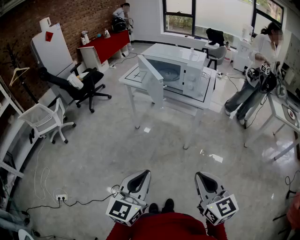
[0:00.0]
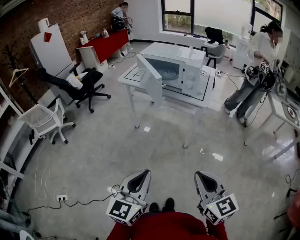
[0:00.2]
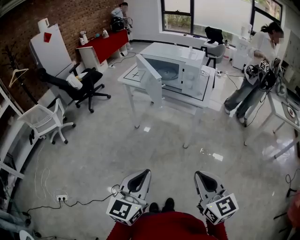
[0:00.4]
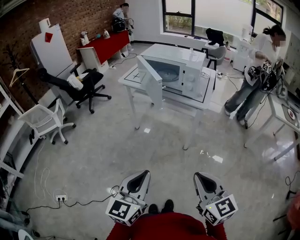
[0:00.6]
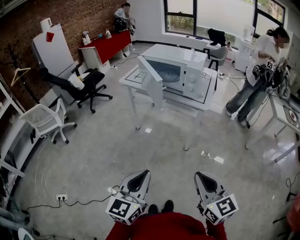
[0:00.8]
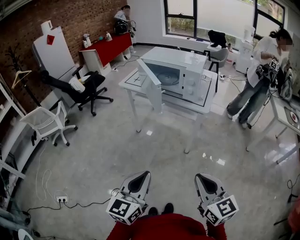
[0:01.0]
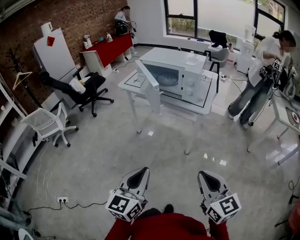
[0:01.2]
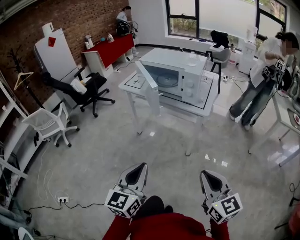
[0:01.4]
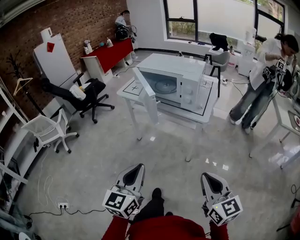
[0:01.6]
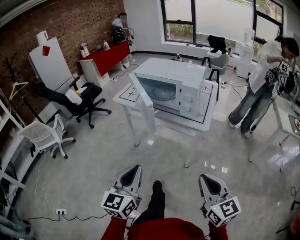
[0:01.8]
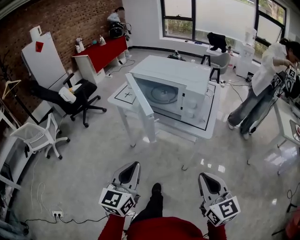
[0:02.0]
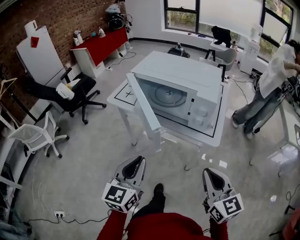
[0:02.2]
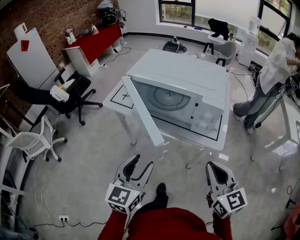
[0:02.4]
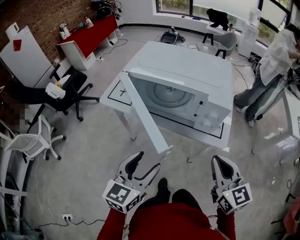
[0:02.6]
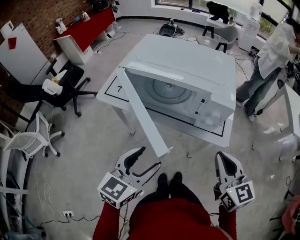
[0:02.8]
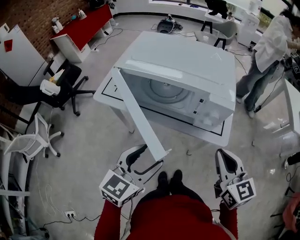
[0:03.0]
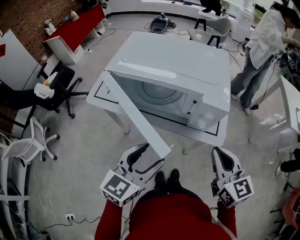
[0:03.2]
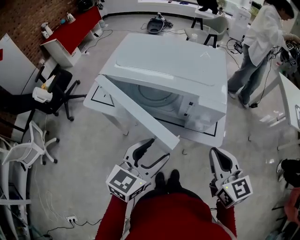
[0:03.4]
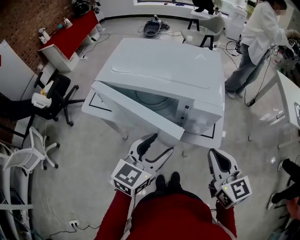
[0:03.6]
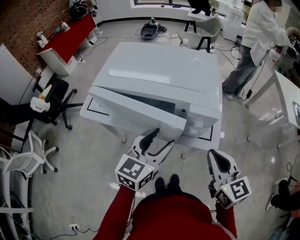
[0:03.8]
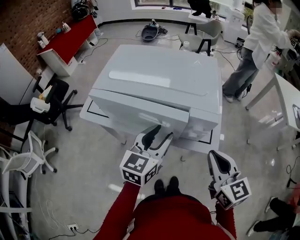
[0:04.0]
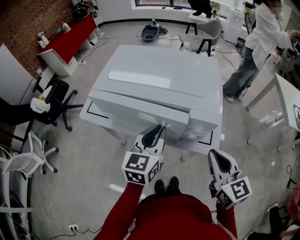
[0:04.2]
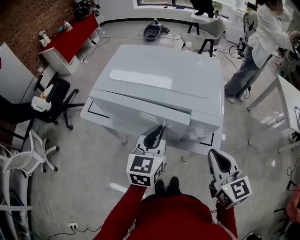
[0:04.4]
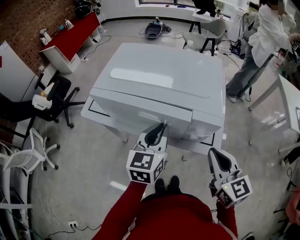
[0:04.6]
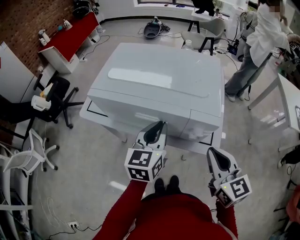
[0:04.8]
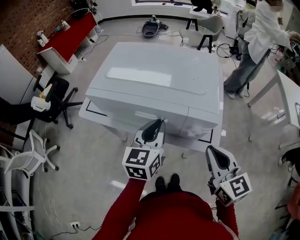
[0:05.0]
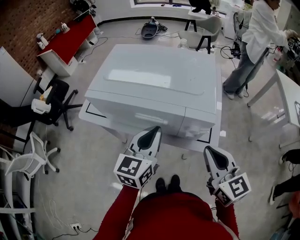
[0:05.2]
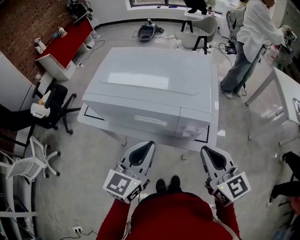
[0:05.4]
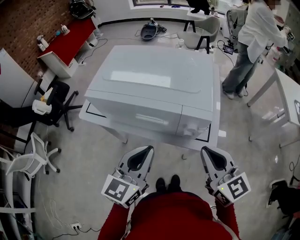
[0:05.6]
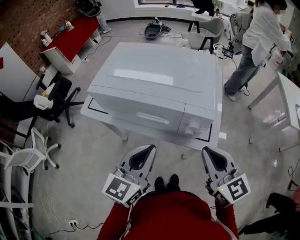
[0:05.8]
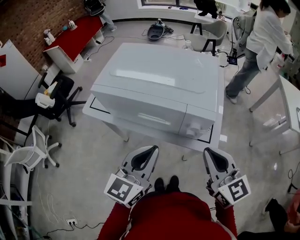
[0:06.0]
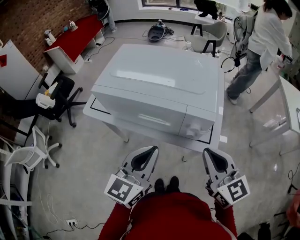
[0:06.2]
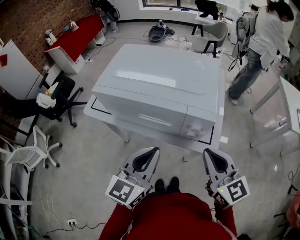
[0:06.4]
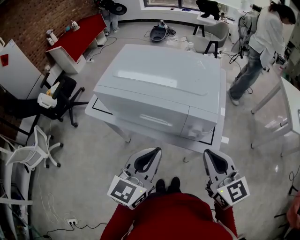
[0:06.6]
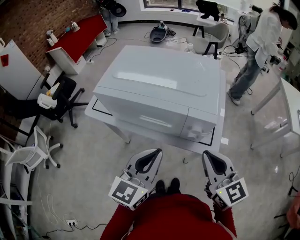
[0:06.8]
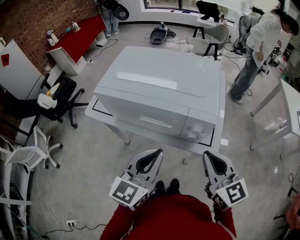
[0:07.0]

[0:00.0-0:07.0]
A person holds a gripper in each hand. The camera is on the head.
0:00.0 to 0:01.4: The left gripper goes about 5 cm forward; the right gripper travels to the right and forward by some 10 cm.
0:01.4 to 0:02.8: The two grippers go some 30 cm forward. The left gripper turns by about 30 degrees, and opens its fingers.
0:02.8 to 0:04.2: The right gripper shifts about 5 cm forward, while the left gripper heads forward, covering about 15 cm, and closes its fingers.
0:04.2 to 0:05.6: The left gripper is displaced backward by about 10 cm.
0:05.6 to 0:07.0: The grippers move only a little.

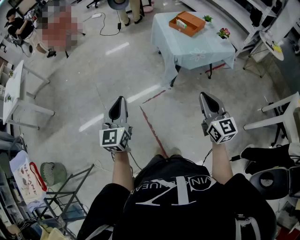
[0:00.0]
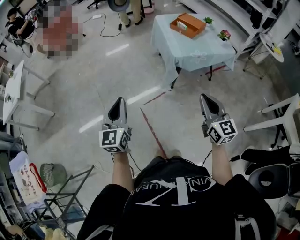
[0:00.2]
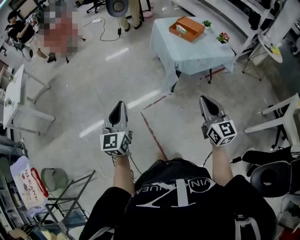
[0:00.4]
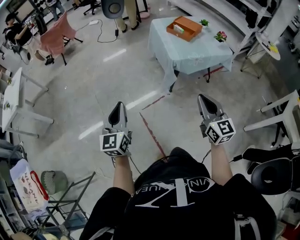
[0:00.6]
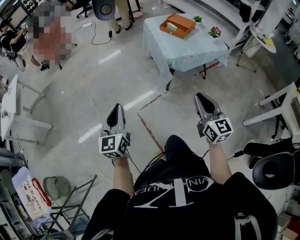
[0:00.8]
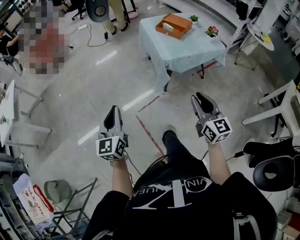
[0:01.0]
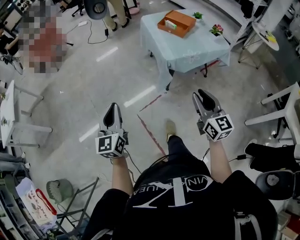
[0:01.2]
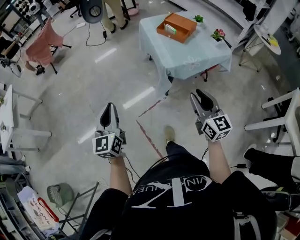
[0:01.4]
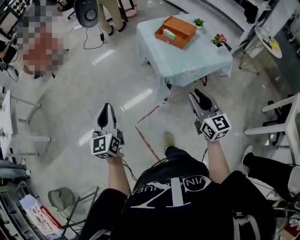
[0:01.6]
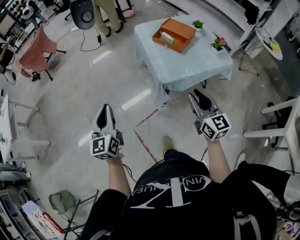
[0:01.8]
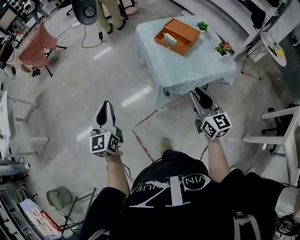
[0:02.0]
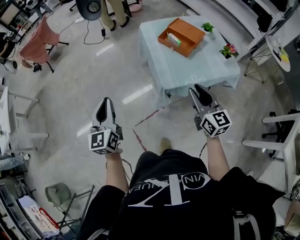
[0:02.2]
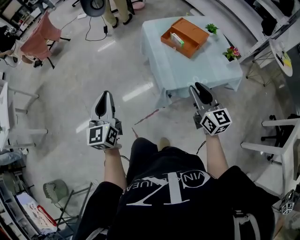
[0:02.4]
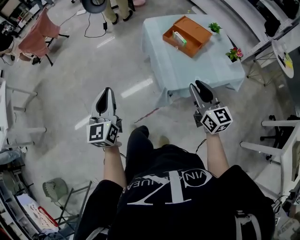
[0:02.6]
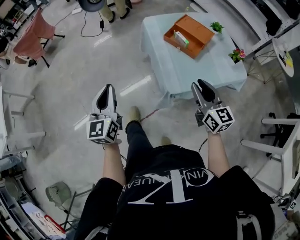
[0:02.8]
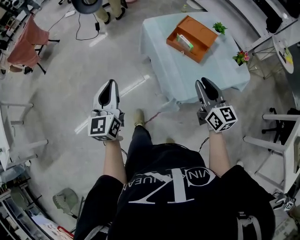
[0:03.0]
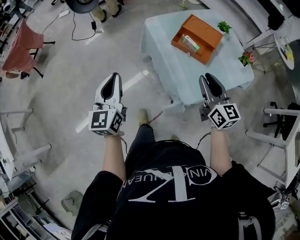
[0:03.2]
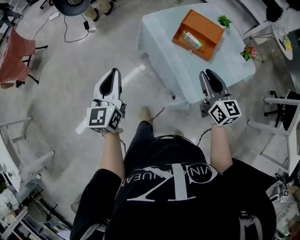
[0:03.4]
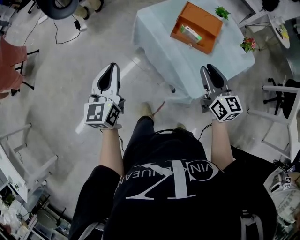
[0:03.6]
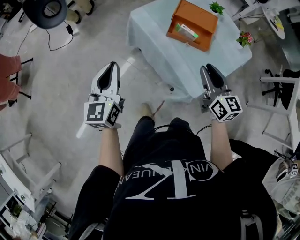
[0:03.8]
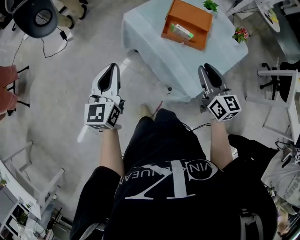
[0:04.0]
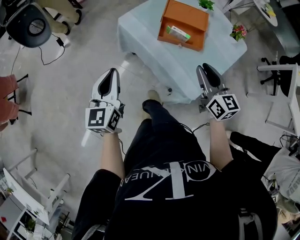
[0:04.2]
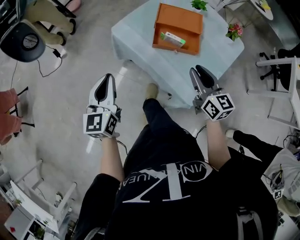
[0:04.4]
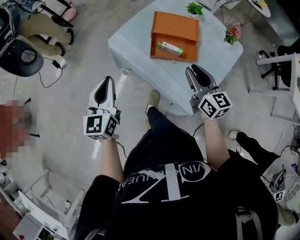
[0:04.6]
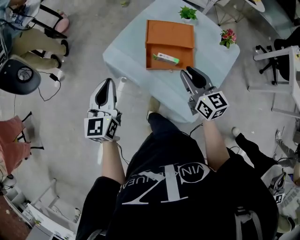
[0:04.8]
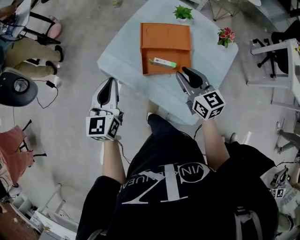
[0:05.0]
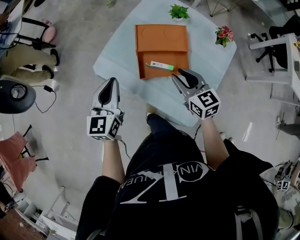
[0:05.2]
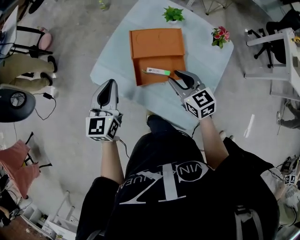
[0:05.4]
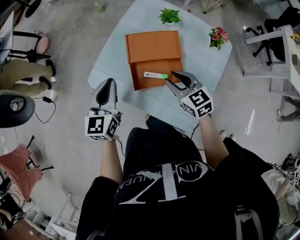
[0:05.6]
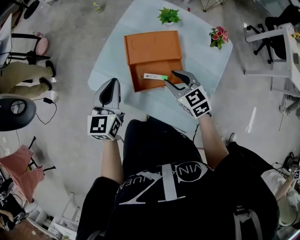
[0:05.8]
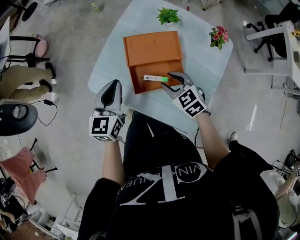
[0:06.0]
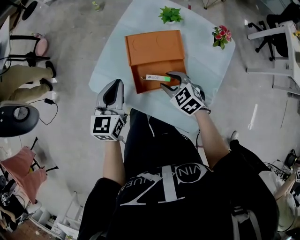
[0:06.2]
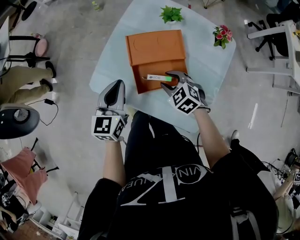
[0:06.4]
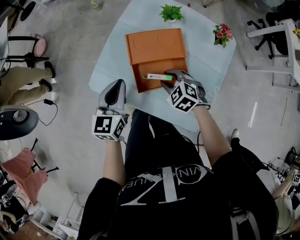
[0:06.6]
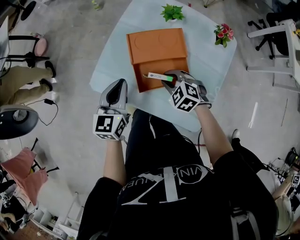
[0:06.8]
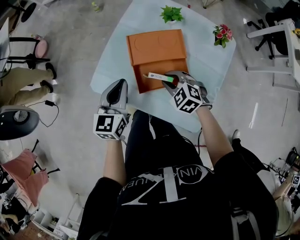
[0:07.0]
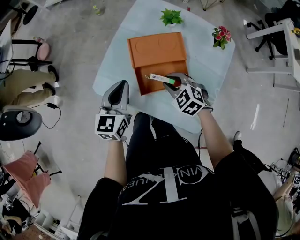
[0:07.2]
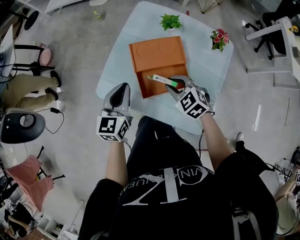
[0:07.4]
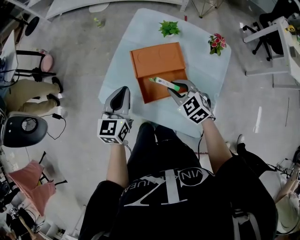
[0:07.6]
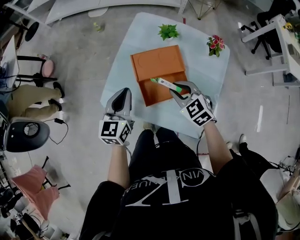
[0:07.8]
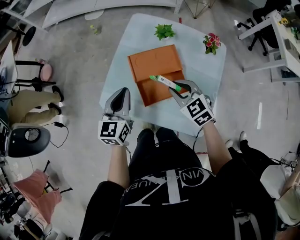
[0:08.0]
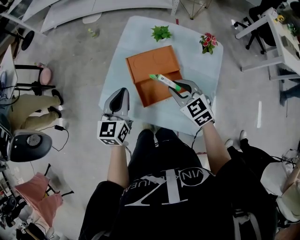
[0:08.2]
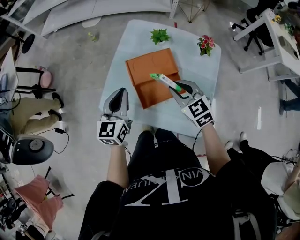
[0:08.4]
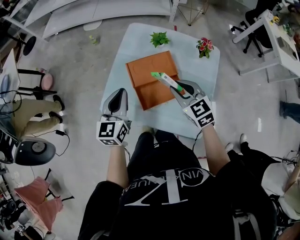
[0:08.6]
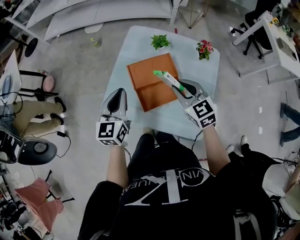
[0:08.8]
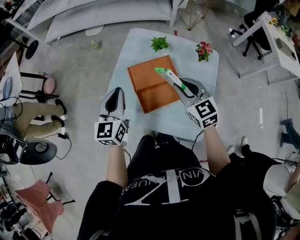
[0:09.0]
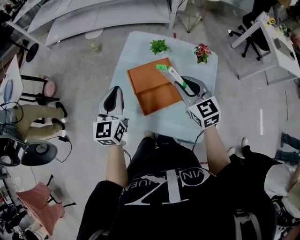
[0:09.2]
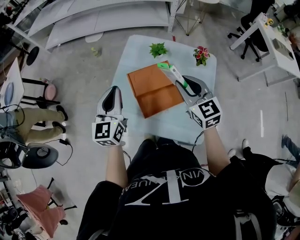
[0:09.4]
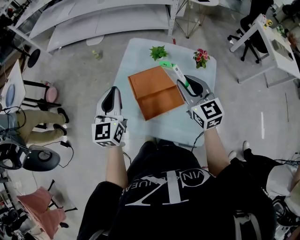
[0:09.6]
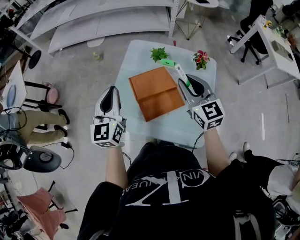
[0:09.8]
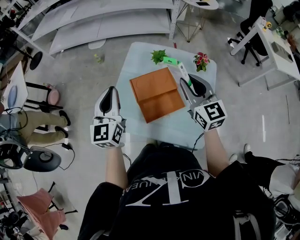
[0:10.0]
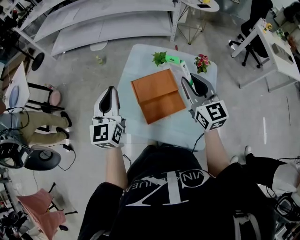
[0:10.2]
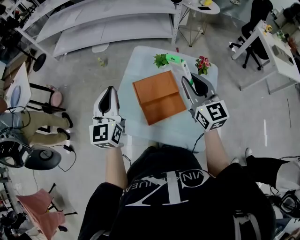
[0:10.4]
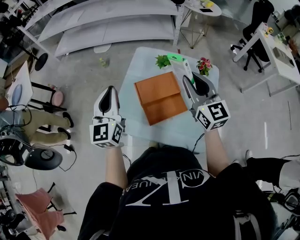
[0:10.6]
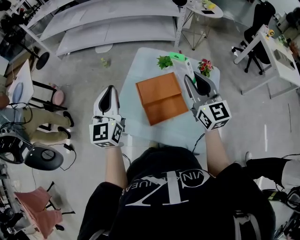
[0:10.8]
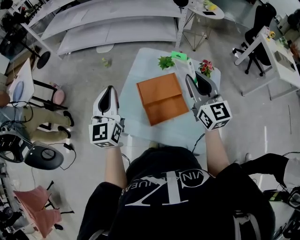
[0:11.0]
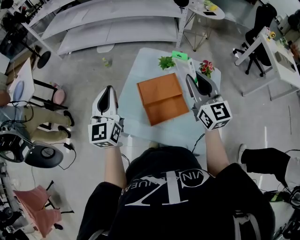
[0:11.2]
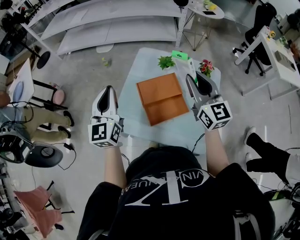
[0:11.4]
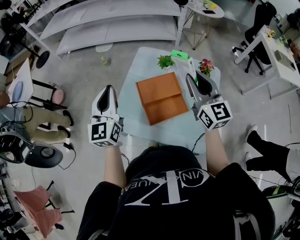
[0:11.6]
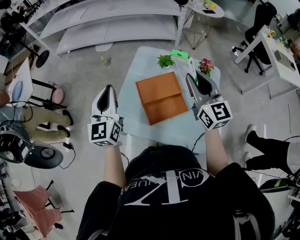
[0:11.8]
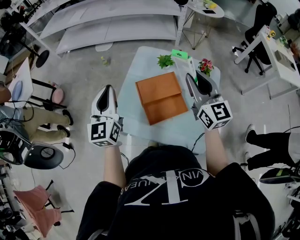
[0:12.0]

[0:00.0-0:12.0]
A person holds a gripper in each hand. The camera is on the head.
0:00.0 to 0:01.6: The grippers both shift forward by approximately 25 cm. The right gripper opens.
0:01.6 to 0:03.0: The two grippers go approximately 30 cm forward.
0:03.0 to 0:04.4: The right gripper shifts by some 15 cm, and rotates some 30 degrees. Meanwhile the left gripper changes place by about 25 cm, and turns by approximately 30 degrees.
0:04.4 to 0:06.0: The left gripper shifts approximately 30 cm forward and to the right, and rotates roughly 20 degrees. Meanwhile the right gripper heads forward and downward, covering about 20 cm, and points its fingers some 30 degrees further downward.
0:06.0 to 0:07.6: The right gripper closes.
0:07.6 to 0:09.0: The left gripper travels upward by approximately 10 cm; the right gripper heads upward, covering approximately 15 cm, and turns by some 30 degrees.
0:09.0 to 0:10.4: The grippers both shift upward by some 10 cm. The right gripper rotates roughly 20 degrees.
0:10.4 to 0:12.0: The grippers move only a little.

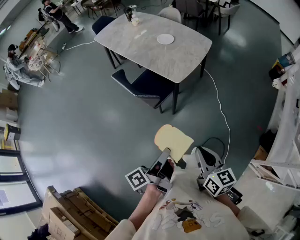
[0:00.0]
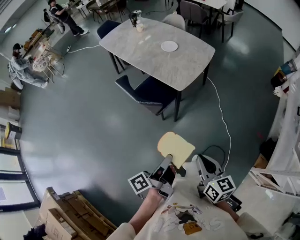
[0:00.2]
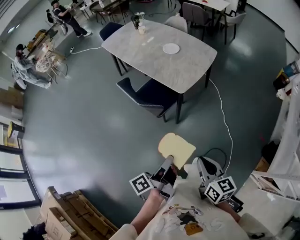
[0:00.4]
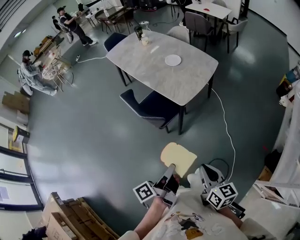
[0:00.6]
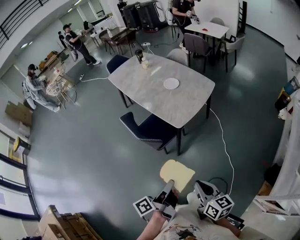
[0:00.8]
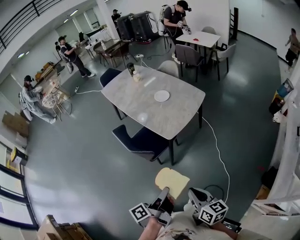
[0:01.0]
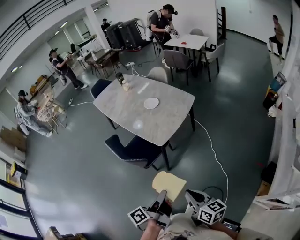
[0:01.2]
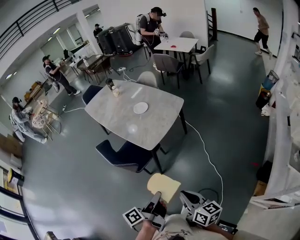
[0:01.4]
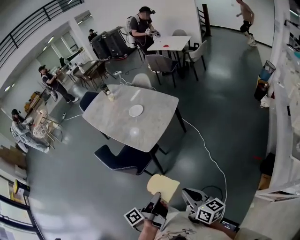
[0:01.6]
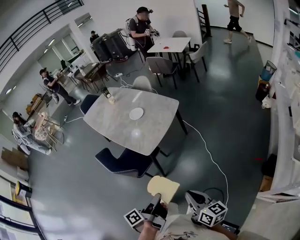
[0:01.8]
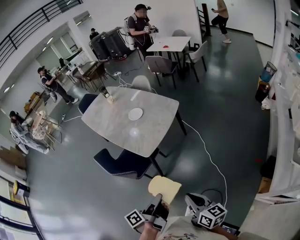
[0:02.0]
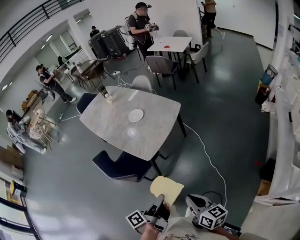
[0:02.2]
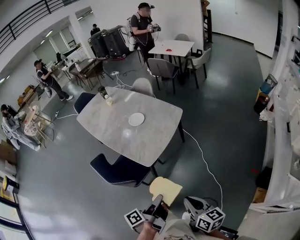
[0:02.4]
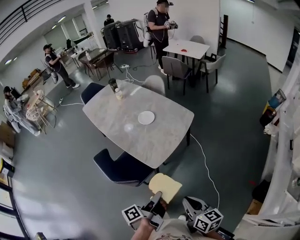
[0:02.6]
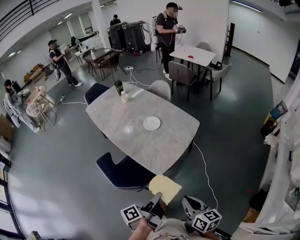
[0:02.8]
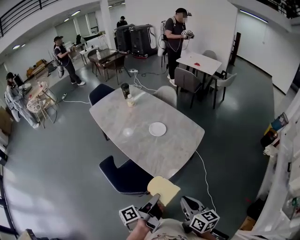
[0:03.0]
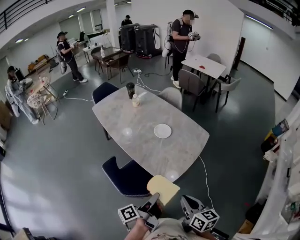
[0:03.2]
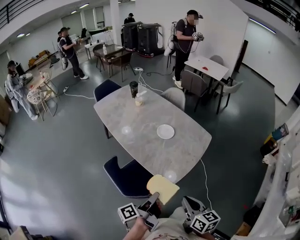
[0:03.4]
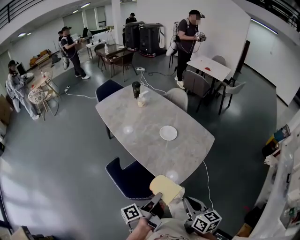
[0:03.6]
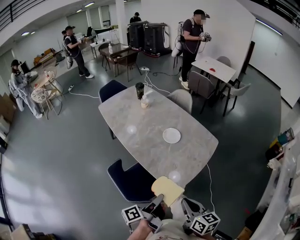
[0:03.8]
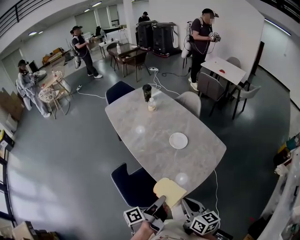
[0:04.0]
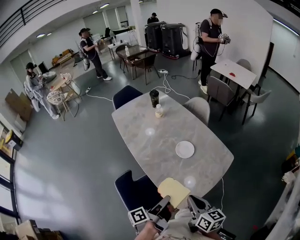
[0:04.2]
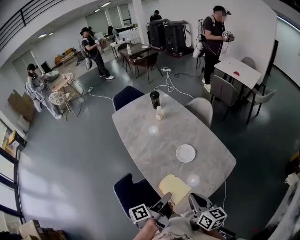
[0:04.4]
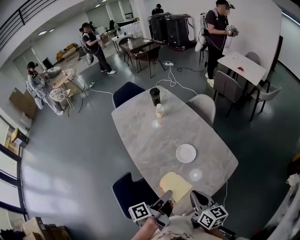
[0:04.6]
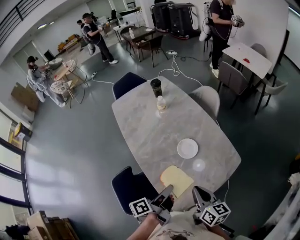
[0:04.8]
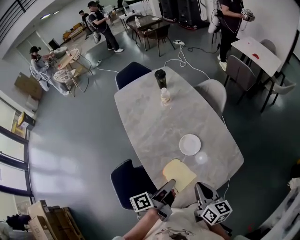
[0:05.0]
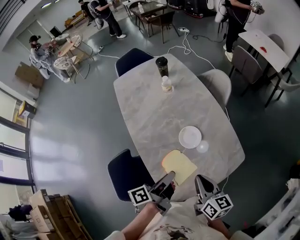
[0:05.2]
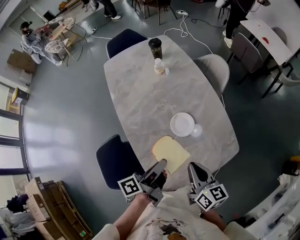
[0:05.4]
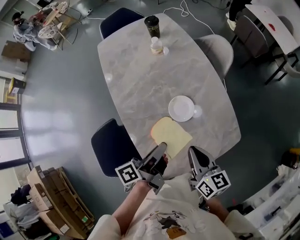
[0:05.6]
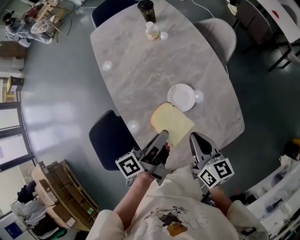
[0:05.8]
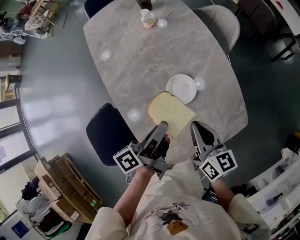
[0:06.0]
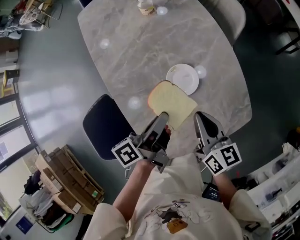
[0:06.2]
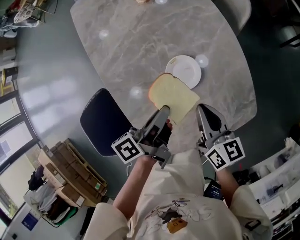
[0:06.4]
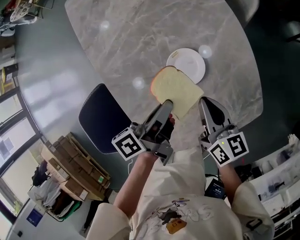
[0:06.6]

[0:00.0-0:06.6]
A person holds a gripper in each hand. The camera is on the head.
0:00.0 to 0:01.6: The right gripper changes place by roughly 20 cm.
0:01.6 to 0:03.2: The right gripper shifts by approximately 30 cm.
0:03.2 to 0:05.0: The right gripper moves some 35 cm.
0:05.0 to 0:06.6: The right gripper ends up roughly 25 cm from where it was.
